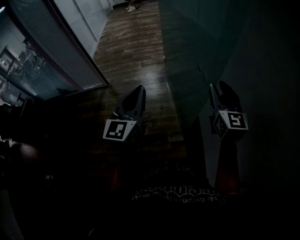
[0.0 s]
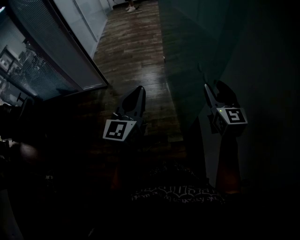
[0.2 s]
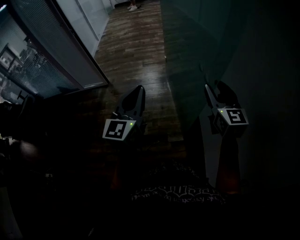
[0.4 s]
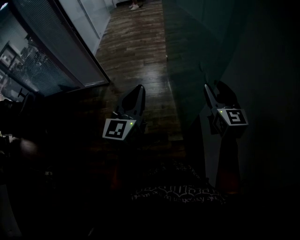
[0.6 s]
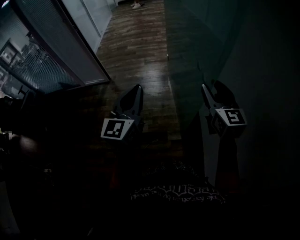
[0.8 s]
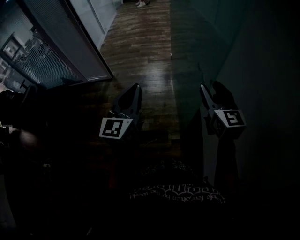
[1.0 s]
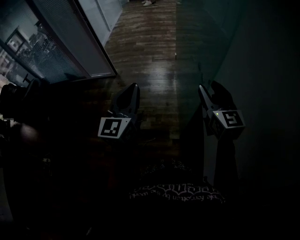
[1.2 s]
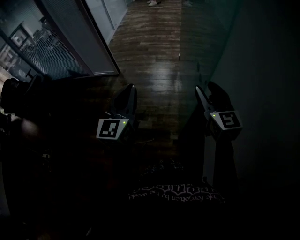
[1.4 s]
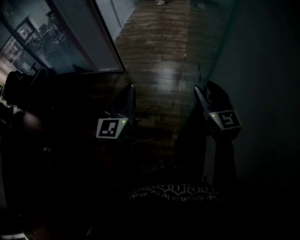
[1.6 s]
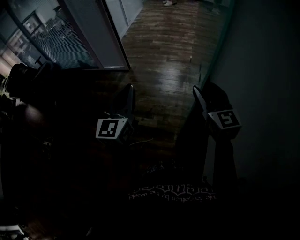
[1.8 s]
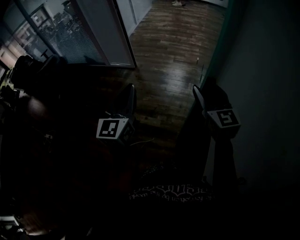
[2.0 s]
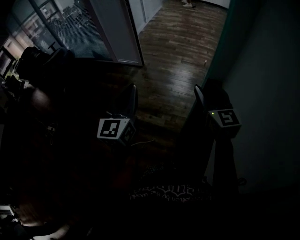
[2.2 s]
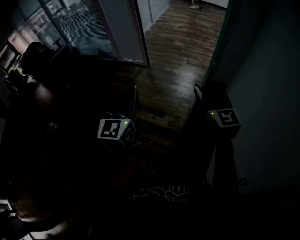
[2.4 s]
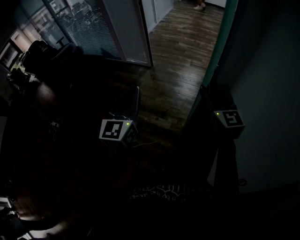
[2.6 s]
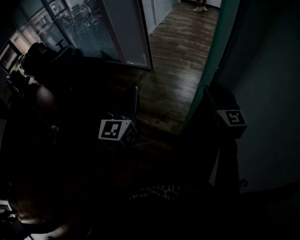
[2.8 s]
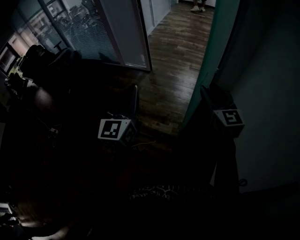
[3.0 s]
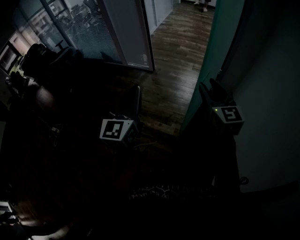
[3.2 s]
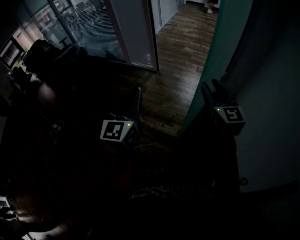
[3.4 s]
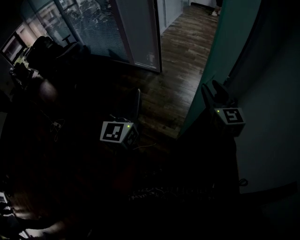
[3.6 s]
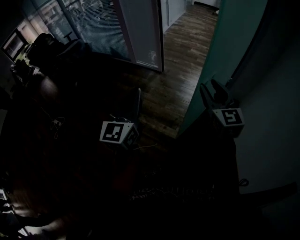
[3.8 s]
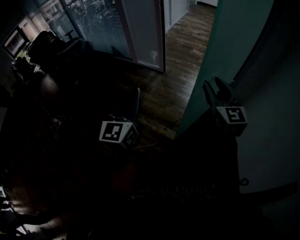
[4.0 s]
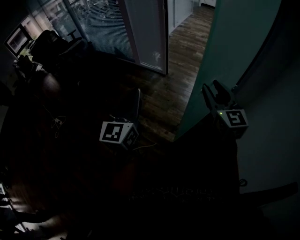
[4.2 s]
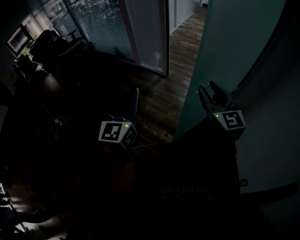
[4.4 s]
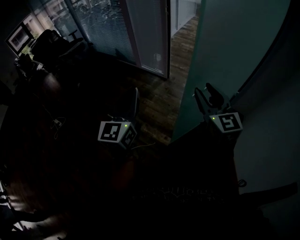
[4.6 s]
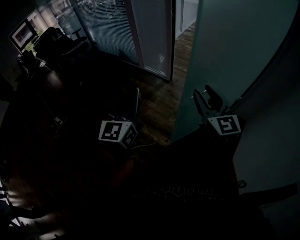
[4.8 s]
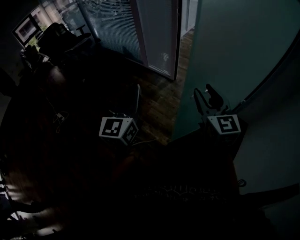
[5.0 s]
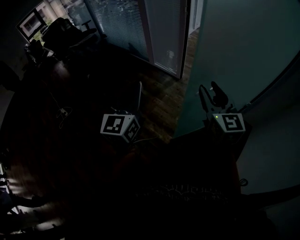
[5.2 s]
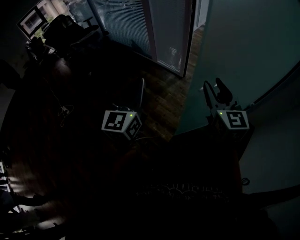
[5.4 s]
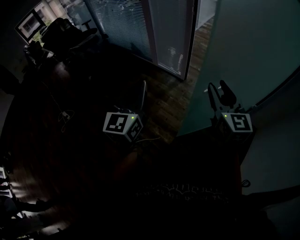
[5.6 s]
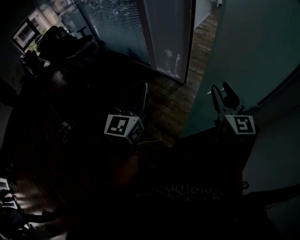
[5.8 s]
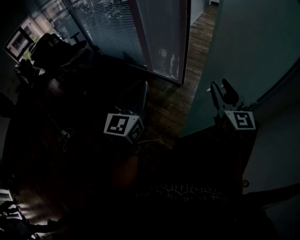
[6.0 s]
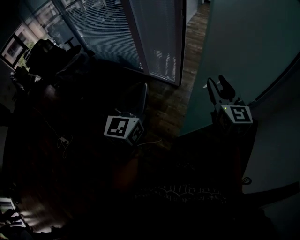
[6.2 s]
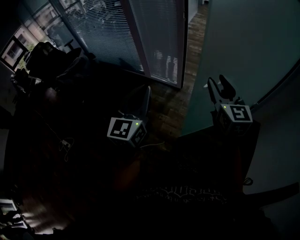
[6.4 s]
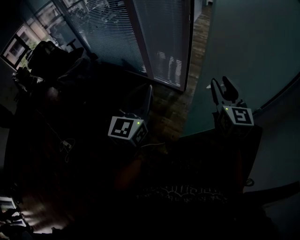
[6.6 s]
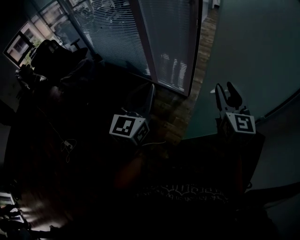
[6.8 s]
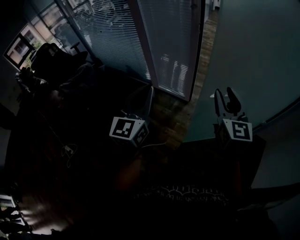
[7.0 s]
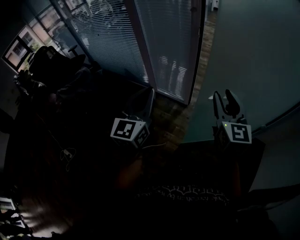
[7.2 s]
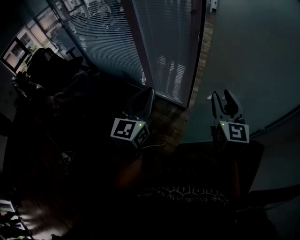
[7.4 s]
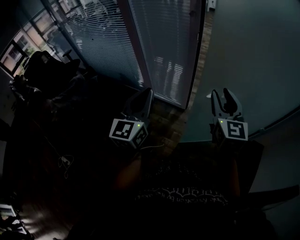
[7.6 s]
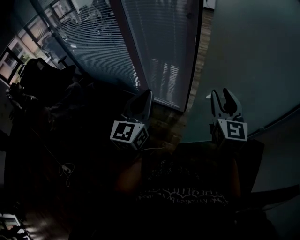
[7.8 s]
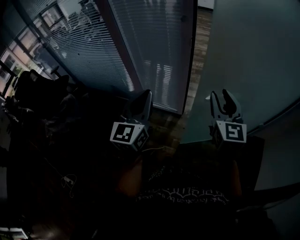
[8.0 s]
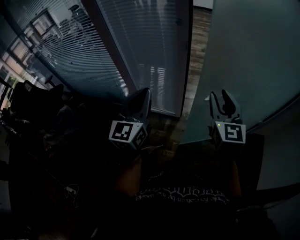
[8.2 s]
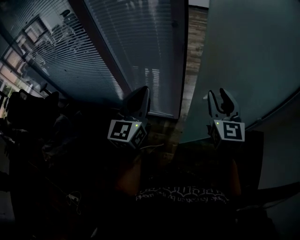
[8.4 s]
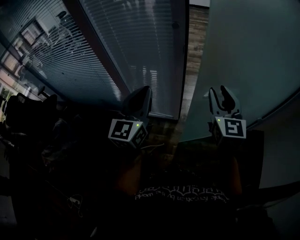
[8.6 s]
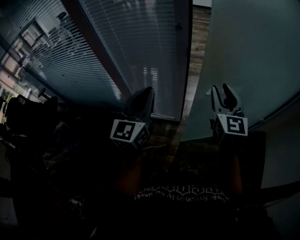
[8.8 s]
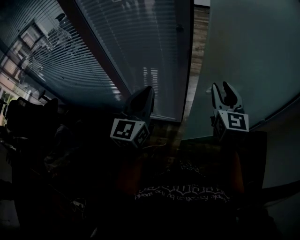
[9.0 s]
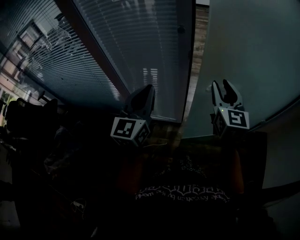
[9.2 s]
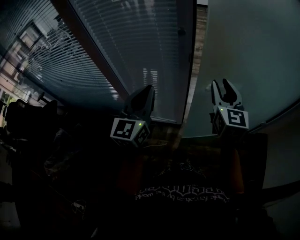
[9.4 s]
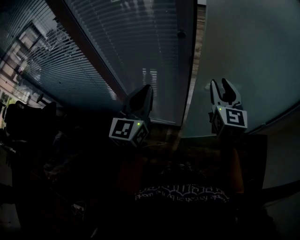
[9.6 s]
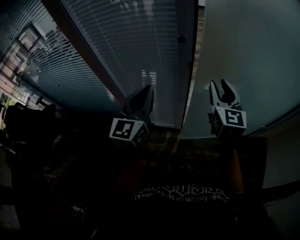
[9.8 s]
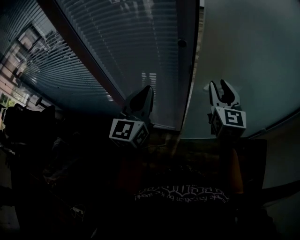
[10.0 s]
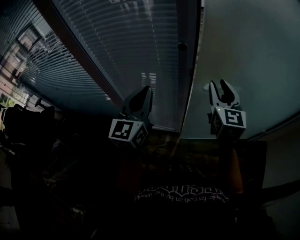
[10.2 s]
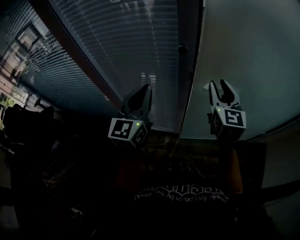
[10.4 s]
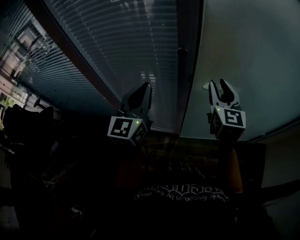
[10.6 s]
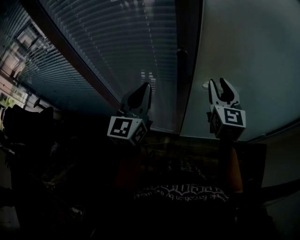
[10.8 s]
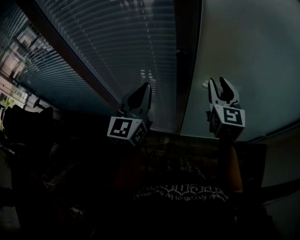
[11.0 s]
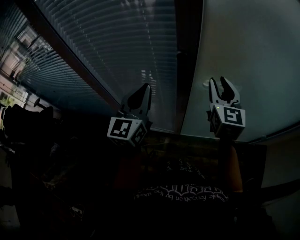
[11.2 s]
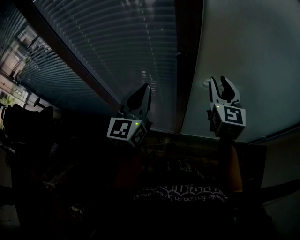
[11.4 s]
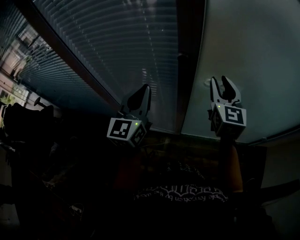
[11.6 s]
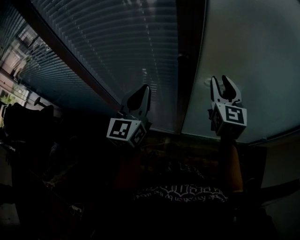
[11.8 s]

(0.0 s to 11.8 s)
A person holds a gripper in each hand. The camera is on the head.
0.0 s - 1.4 s: Both grippers travel together to the left, some 10 cm. The right gripper changes its angle by roughly 20 degrees.
1.4 s - 3.0 s: The left gripper travels to the left by about 15 cm, while the right gripper moves to the left and forward, about 20 cm.
3.0 s - 4.4 s: Both grippers move forward and to the left, some 20 cm.
4.4 s - 6.0 s: Both grippers travel together forward and to the left, approximately 25 cm.
6.0 s - 7.4 s: The grippers both shift forward by some 25 cm.
7.4 s - 8.8 s: The two grippers go some 20 cm forward.
8.8 s - 10.4 s: The grippers both shift forward by approximately 15 cm.
10.4 s - 11.8 s: The right gripper is displaced forward by roughly 5 cm.

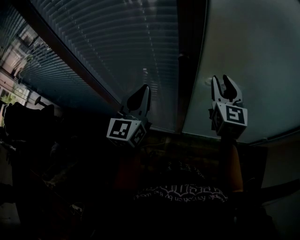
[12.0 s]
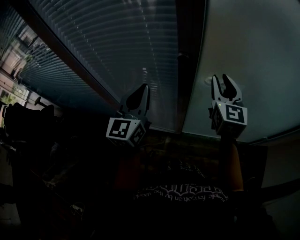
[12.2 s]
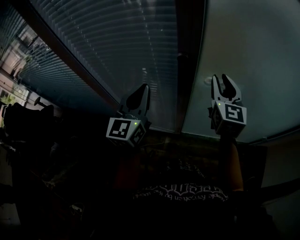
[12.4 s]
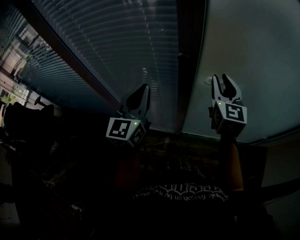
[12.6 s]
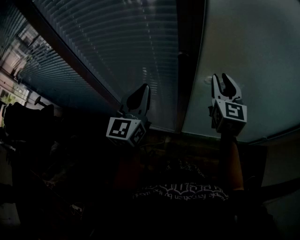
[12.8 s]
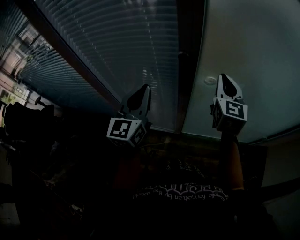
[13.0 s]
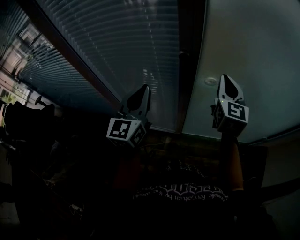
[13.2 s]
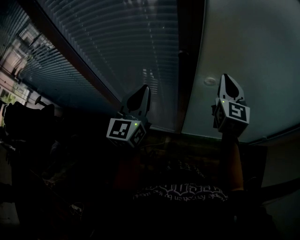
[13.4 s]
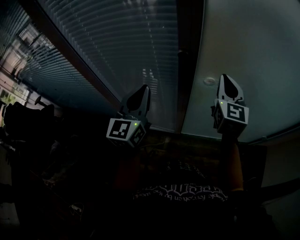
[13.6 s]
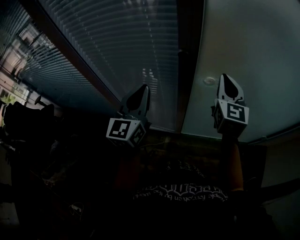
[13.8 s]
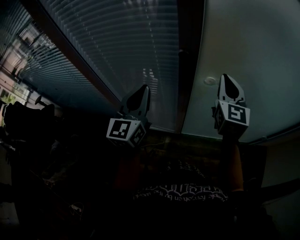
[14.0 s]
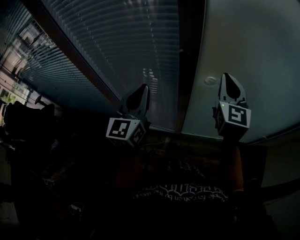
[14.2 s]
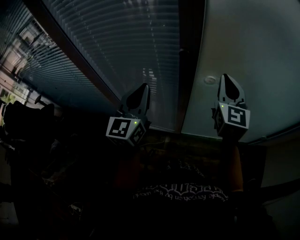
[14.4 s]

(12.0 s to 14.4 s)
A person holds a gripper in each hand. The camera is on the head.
12.0 s - 13.2 s: The right gripper closes.
13.2 s - 14.4 s: The grippers stay close to where they were, moving slightly.

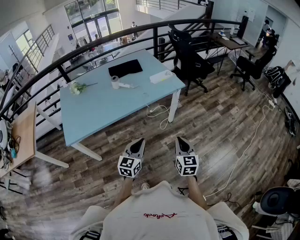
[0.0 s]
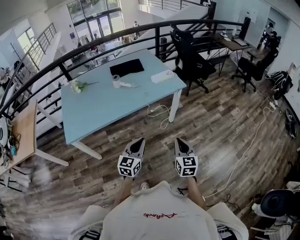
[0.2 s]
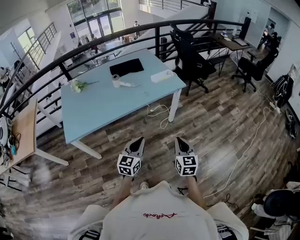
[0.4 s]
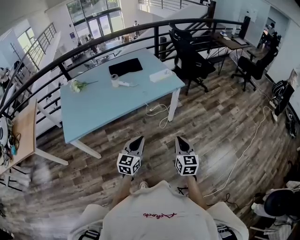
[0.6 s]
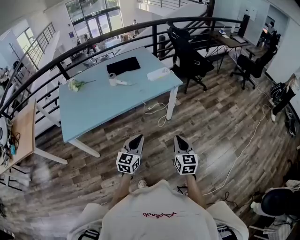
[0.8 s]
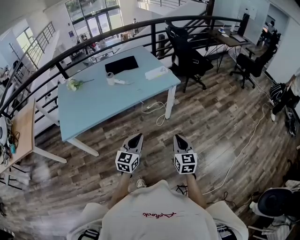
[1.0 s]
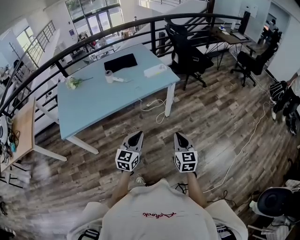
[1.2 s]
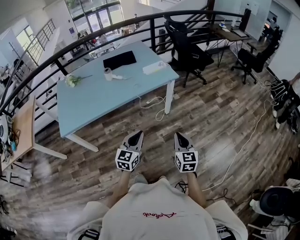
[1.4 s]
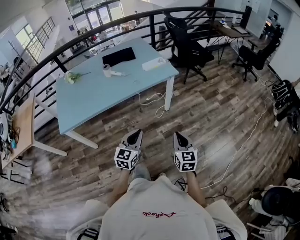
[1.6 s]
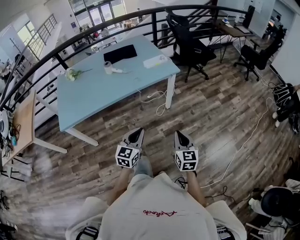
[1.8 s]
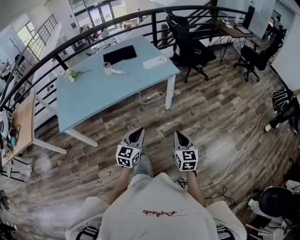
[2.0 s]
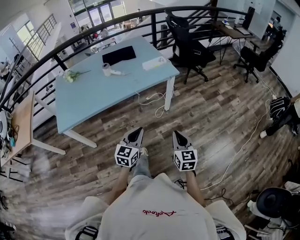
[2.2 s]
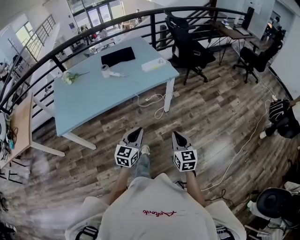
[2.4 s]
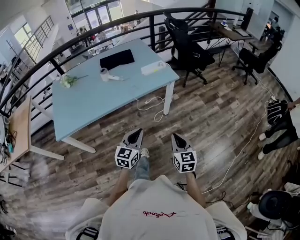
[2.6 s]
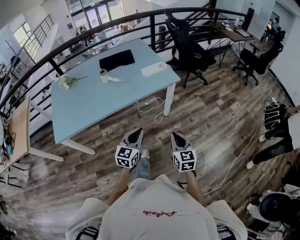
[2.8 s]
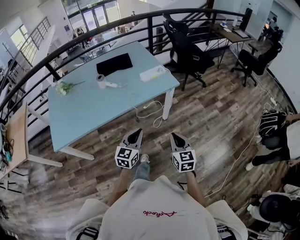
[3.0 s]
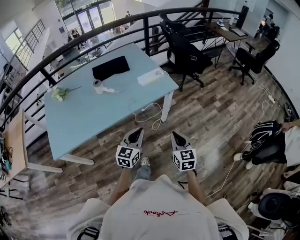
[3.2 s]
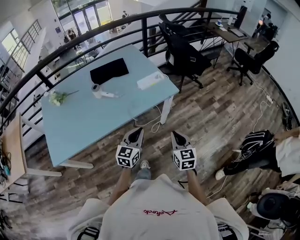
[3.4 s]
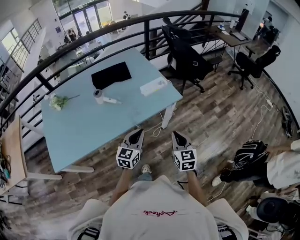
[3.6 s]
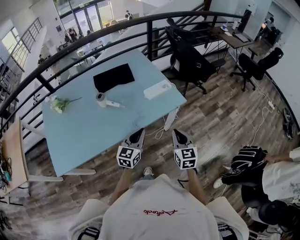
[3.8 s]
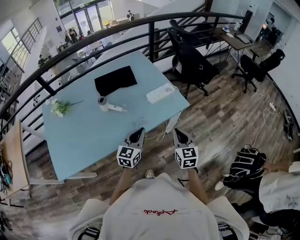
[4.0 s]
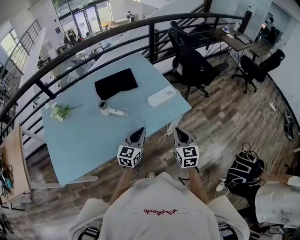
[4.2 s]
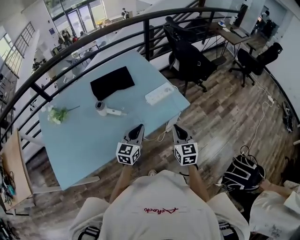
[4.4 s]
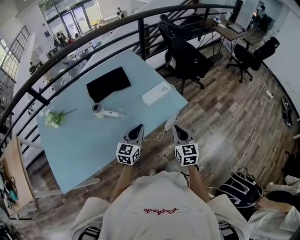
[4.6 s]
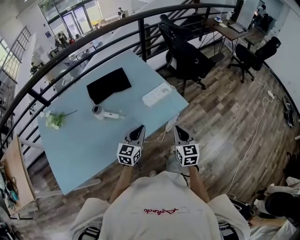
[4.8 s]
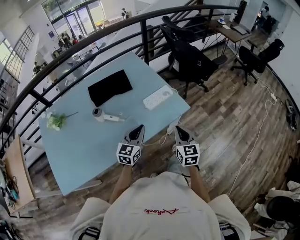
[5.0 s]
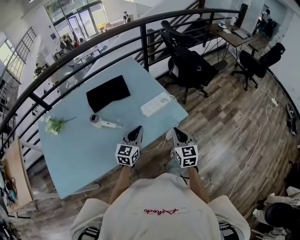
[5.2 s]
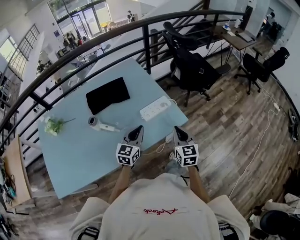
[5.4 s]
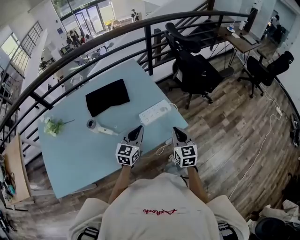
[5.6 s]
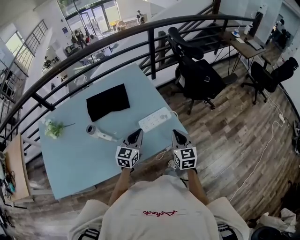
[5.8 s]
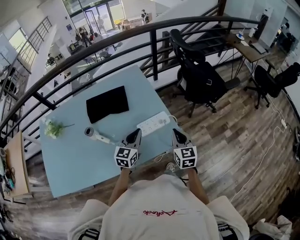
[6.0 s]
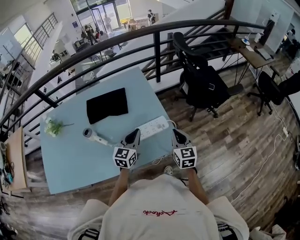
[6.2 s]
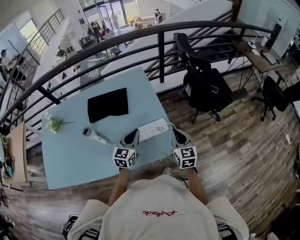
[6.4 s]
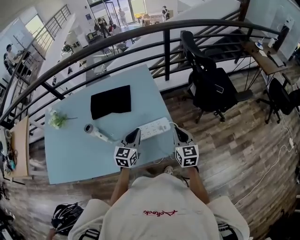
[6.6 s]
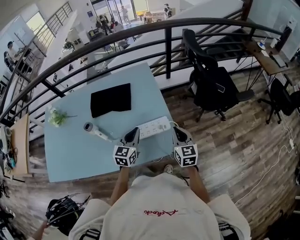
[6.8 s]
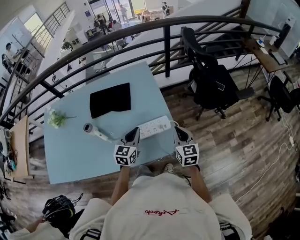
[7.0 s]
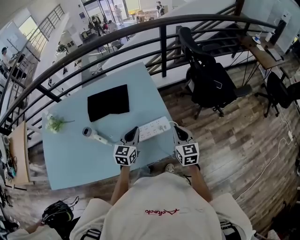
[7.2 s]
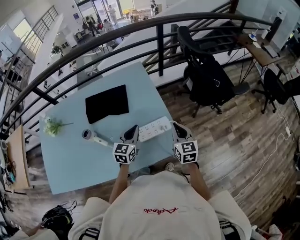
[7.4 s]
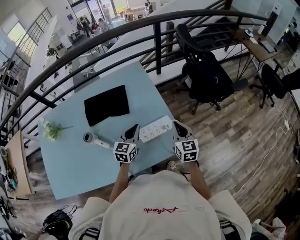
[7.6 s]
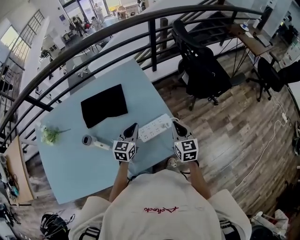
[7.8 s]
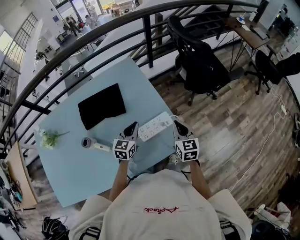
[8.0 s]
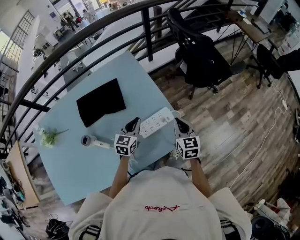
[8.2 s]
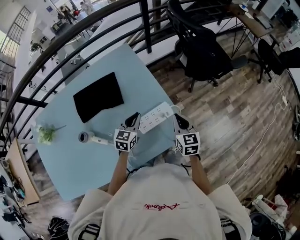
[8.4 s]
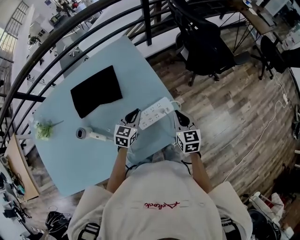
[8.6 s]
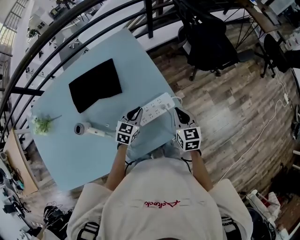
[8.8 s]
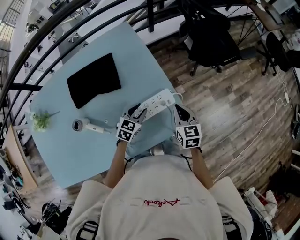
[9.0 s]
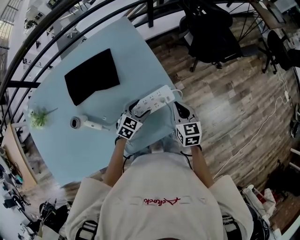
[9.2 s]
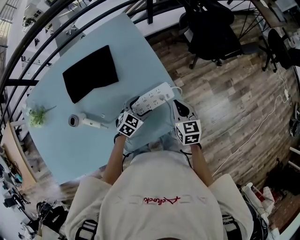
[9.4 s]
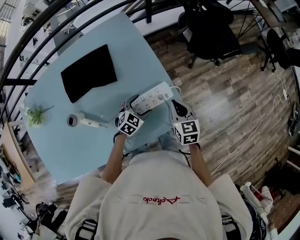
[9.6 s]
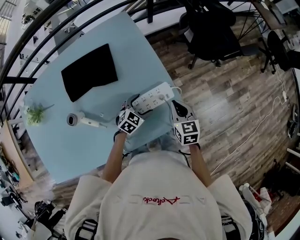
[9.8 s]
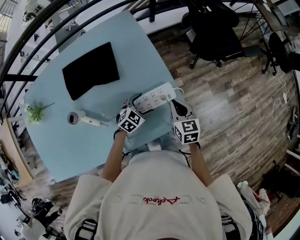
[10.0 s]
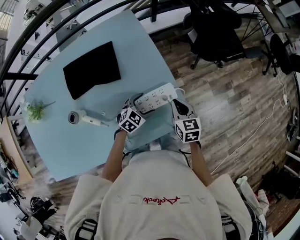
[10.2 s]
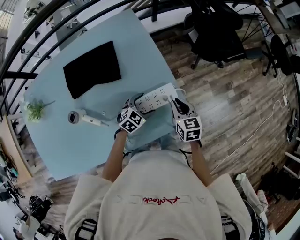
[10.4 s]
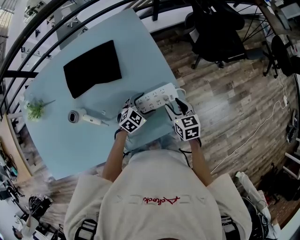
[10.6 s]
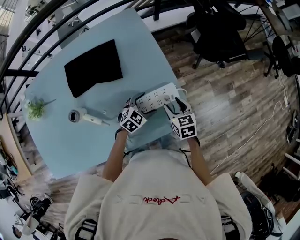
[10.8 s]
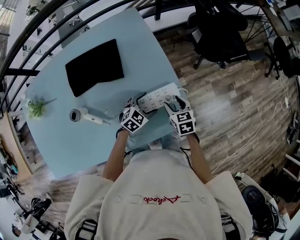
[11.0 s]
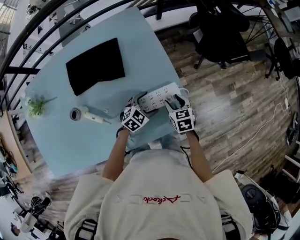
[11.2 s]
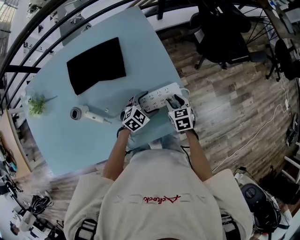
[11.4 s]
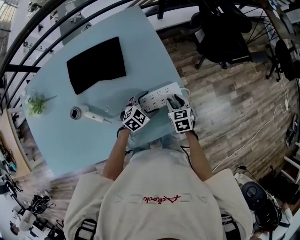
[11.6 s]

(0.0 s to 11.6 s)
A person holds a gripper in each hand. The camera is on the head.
0.0 s - 1.4 s: The grippers both shift to the right by approximately 10 cm.
1.4 s - 2.8 s: Both grippers travel together forward, some 10 cm.
2.8 s - 4.4 s: Both grippers move forward and to the left, about 35 cm.
4.4 s - 5.8 s: The two grippers go approximately 20 cm forward.
5.8 s - 7.2 s: The right gripper is displaced forward and to the right by roughly 15 cm. Meanwhile the left gripper goes roughly 10 cm forward.
7.2 s - 8.8 s: The left gripper travels downward and forward by some 15 cm, and changes its angle by some 30 degrees. Meanwhile the right gripper goes approximately 10 cm downward.
8.8 s - 10.2 s: The left gripper is displaced downward by roughly 5 cm, swivels approximately 20 degrees, and opens.
10.2 s - 11.6 s: The right gripper goes approximately 10 cm downward, and opens up.
